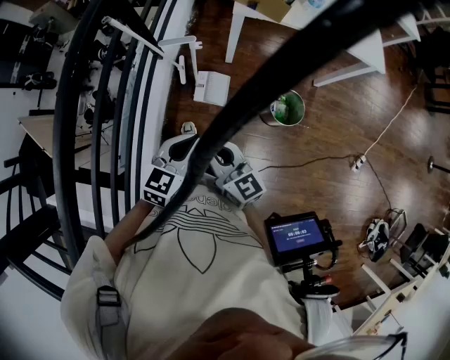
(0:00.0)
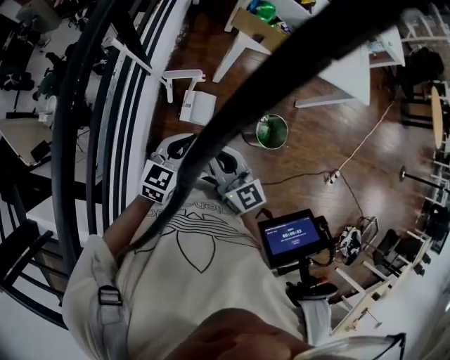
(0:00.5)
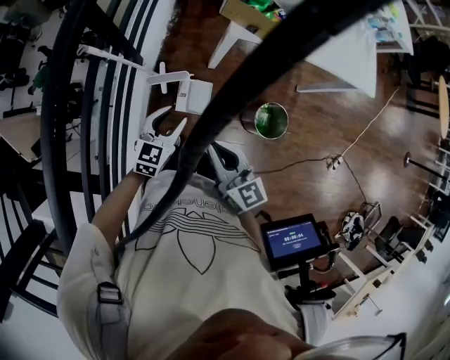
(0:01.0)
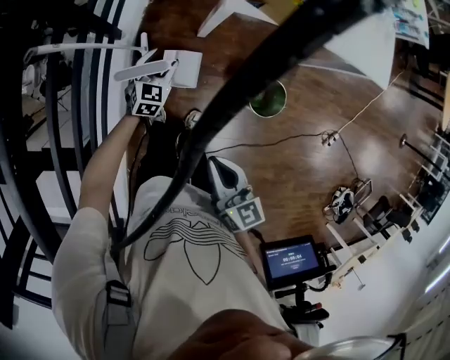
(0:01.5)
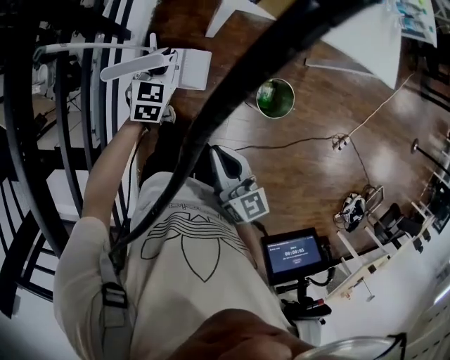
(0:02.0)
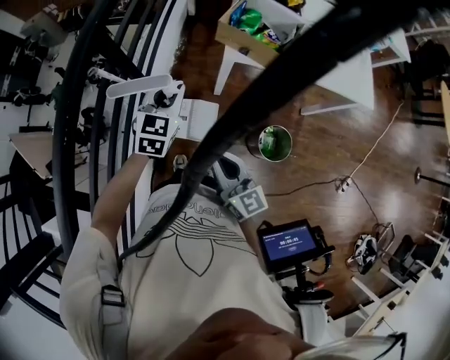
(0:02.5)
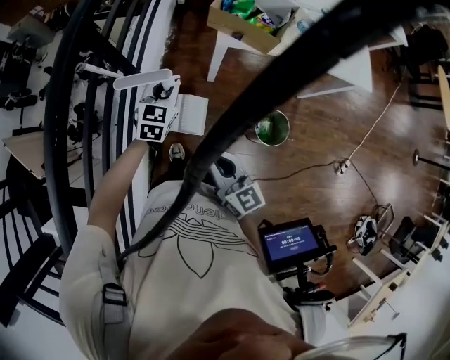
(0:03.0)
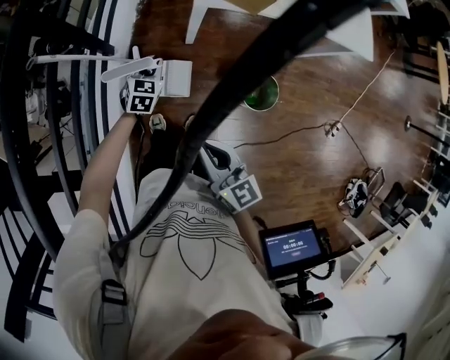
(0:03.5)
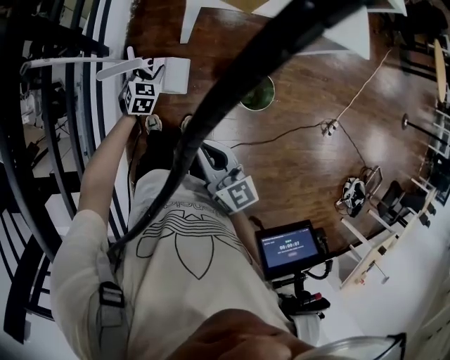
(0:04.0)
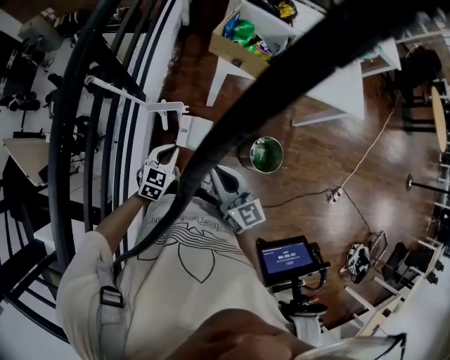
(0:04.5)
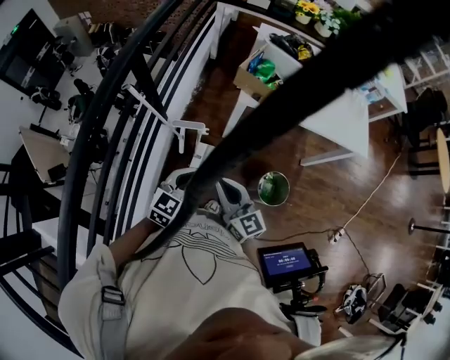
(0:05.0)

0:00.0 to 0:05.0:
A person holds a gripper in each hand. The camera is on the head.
0:00.0 to 0:02.5: The right gripper travels forward by roughly 15 cm, while the left gripper goes roughly 30 cm forward, and opens and closes again.
0:02.5 to 0:05.0: The left gripper is displaced backward by some 15 cm, moves roughly 25 cm downward and comes back, and opens, then closes again.

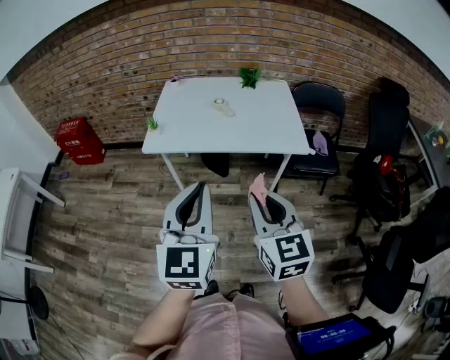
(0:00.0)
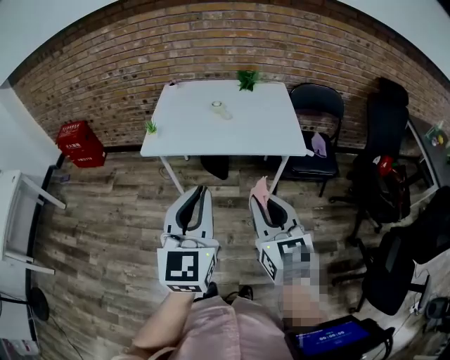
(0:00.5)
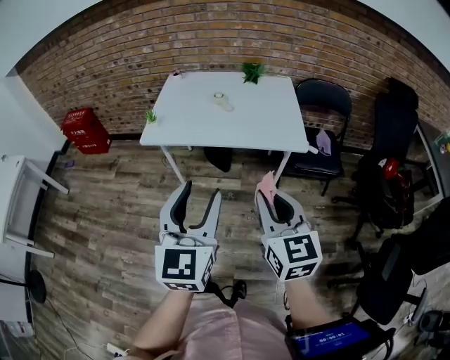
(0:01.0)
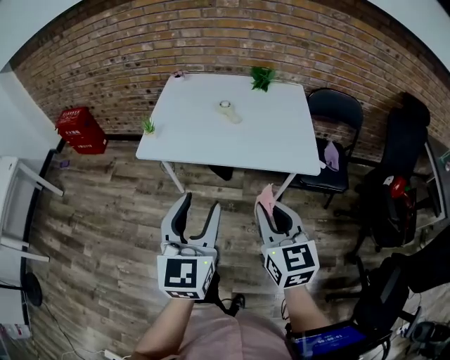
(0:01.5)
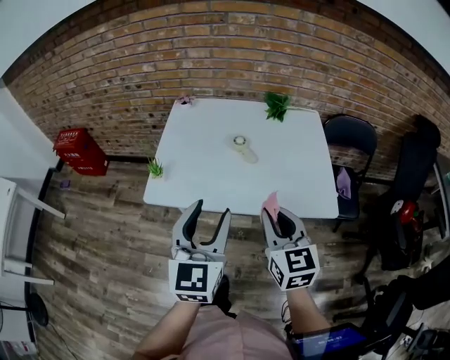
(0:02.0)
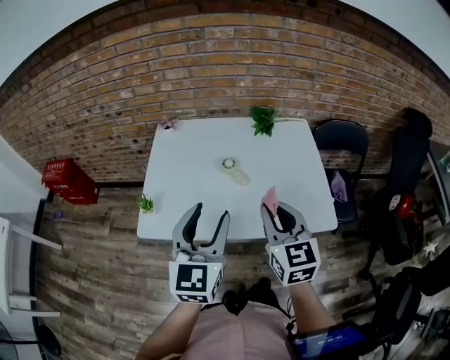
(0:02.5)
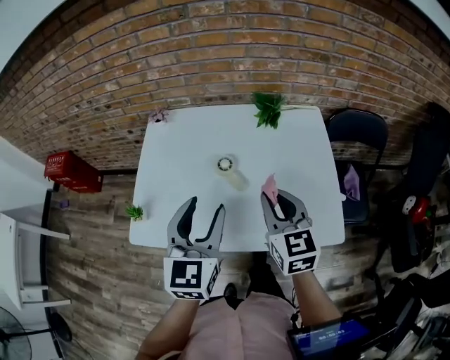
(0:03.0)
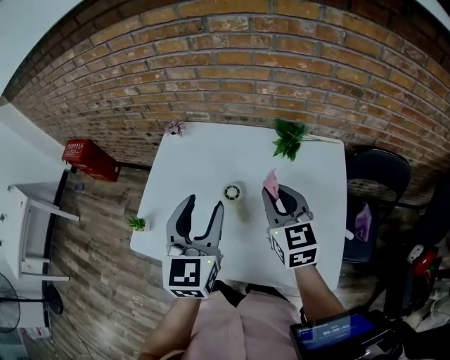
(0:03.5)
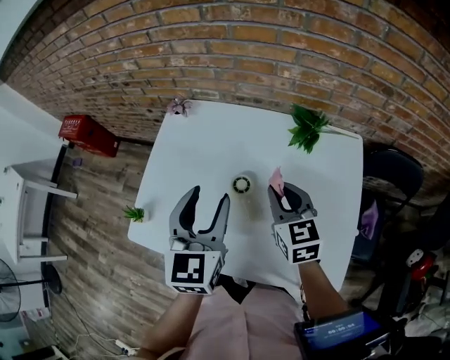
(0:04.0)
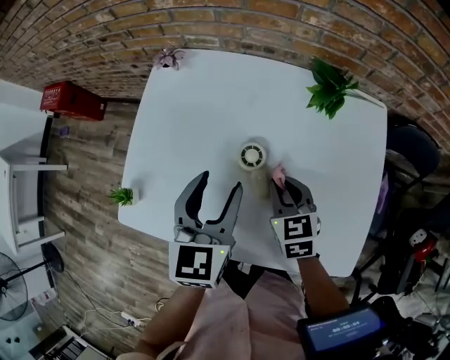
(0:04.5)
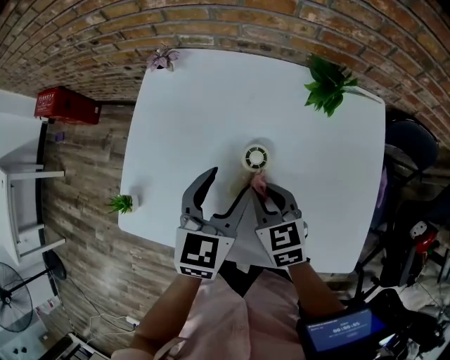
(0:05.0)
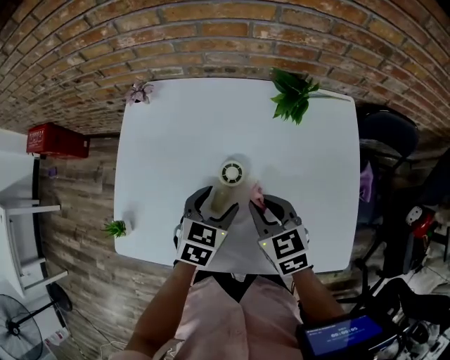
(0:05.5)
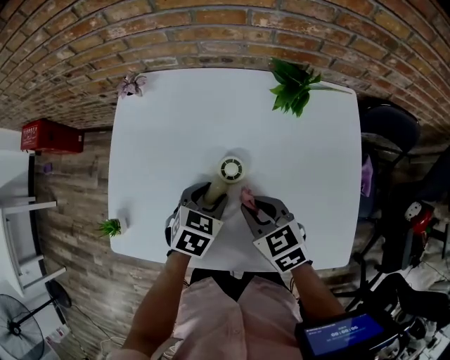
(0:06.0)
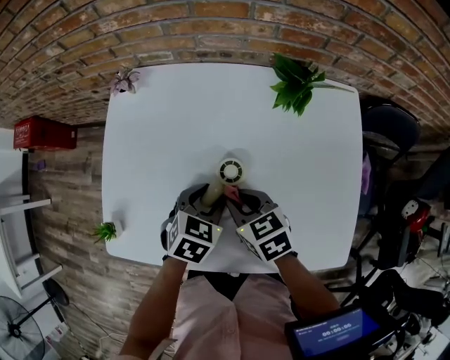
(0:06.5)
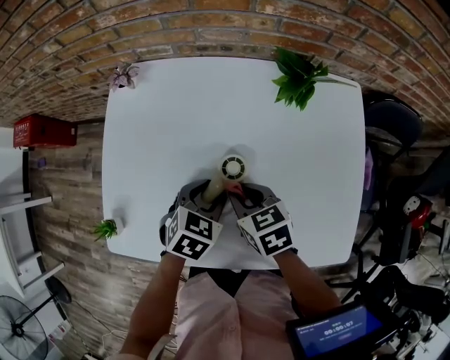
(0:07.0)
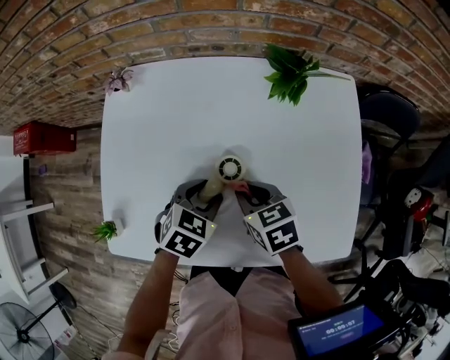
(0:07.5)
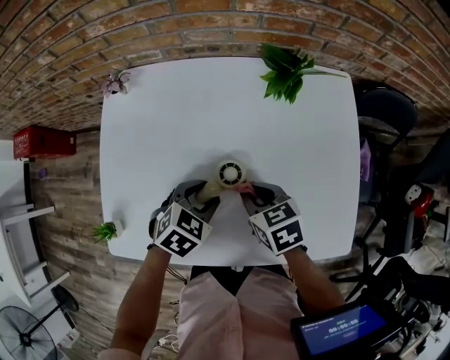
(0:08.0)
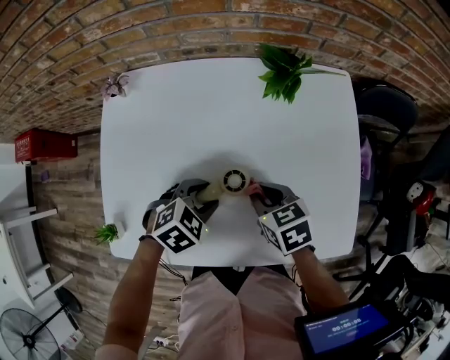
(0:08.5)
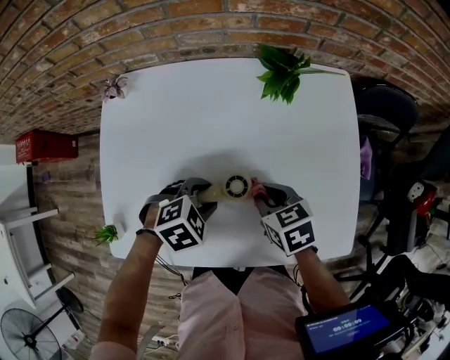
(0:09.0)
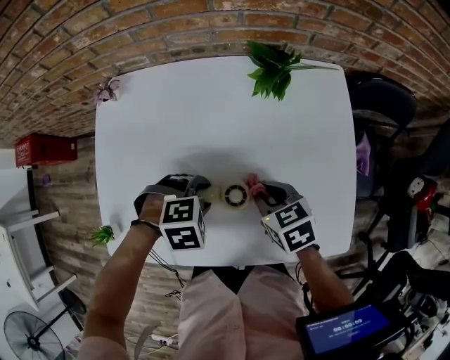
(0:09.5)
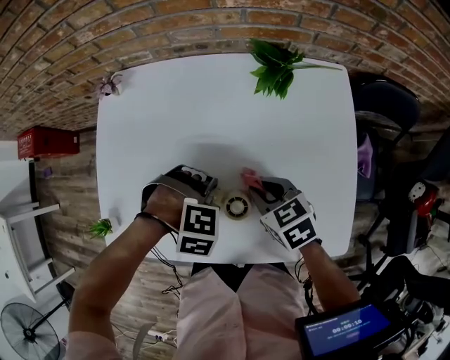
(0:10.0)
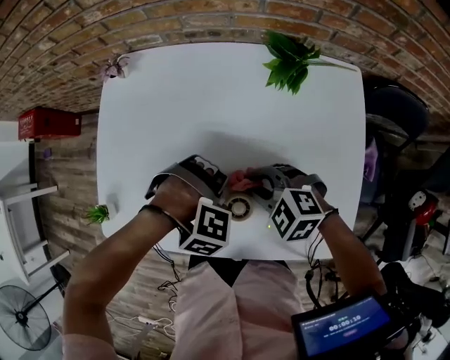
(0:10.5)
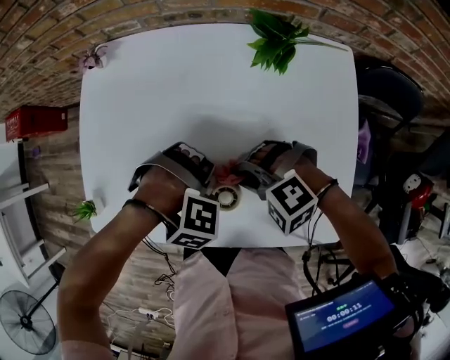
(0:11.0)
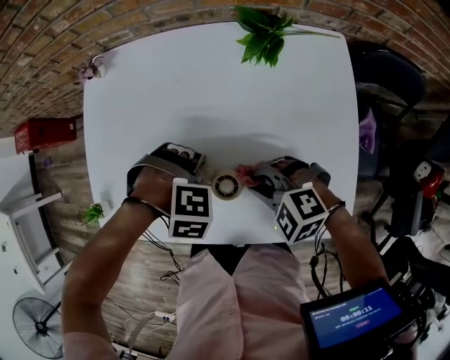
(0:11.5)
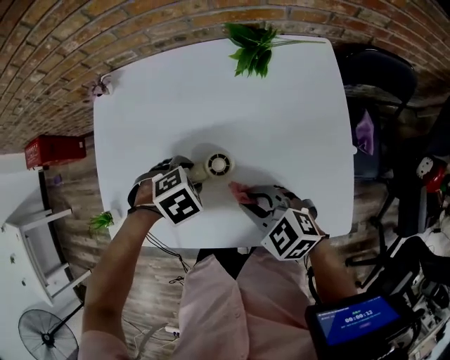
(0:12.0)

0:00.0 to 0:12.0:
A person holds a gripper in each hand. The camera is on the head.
0:00.0 to 0:02.0: Both grippers move forward, roughly 25 cm. The left gripper opens up.
0:02.0 to 0:04.0: Both grippers travel together forward, some 30 cm.
0:04.0 to 0:06.0: The right gripper heads downward, backward and to the left, covering about 15 cm, and changes its angle by approximately 20 degrees. Meanwhile the left gripper heads downward, covering approximately 25 cm, and tips its fingers downward by some 40 degrees.
0:06.0 to 0:08.0: The grippers make only small movements.
0:08.0 to 0:10.0: The left gripper rolls clockwise, seen from behind, by some 60 degrees.
0:10.0 to 0:12.0: The right gripper moves roughly 10 cm, and rotates about 30 degrees. Meanwhile the left gripper rotates approximately 40 degrees.

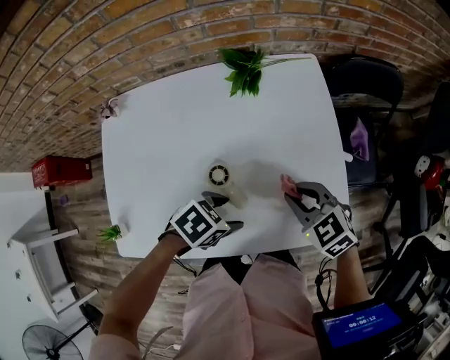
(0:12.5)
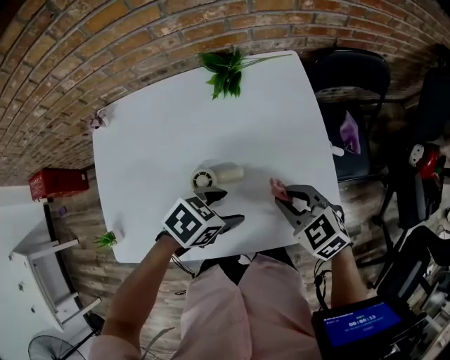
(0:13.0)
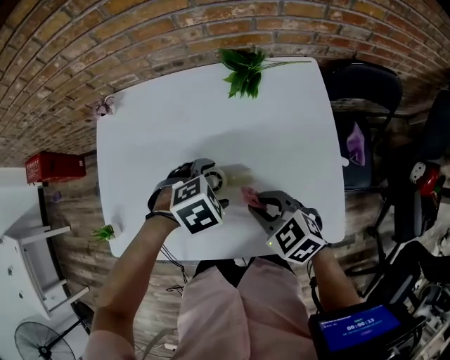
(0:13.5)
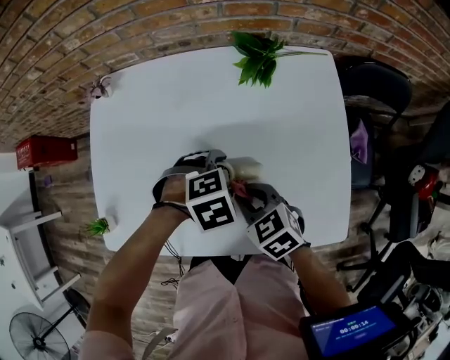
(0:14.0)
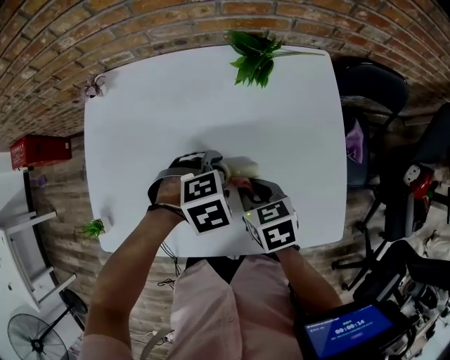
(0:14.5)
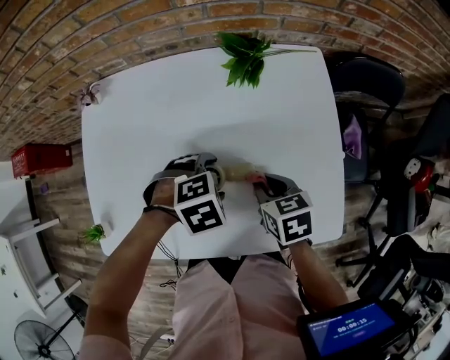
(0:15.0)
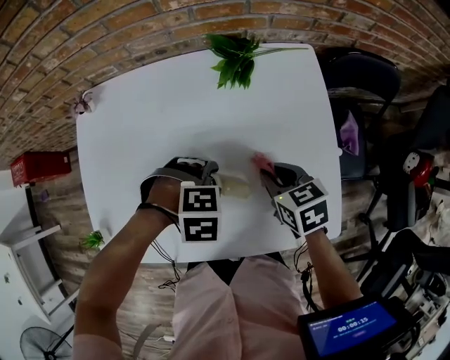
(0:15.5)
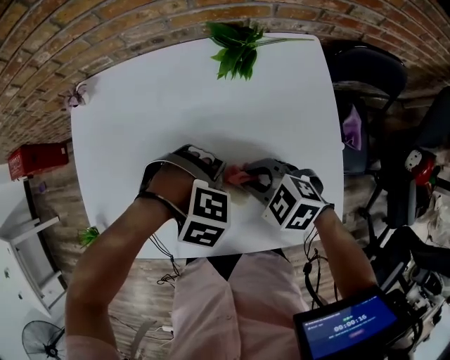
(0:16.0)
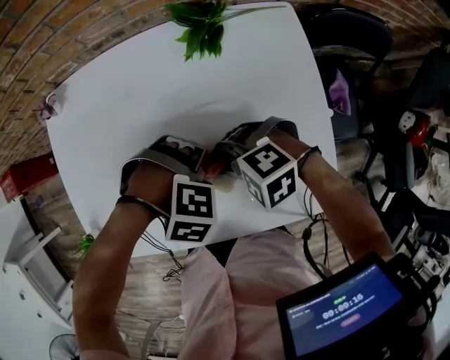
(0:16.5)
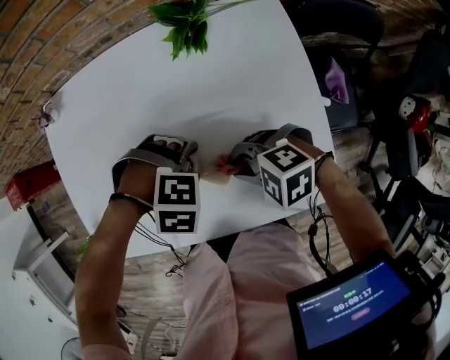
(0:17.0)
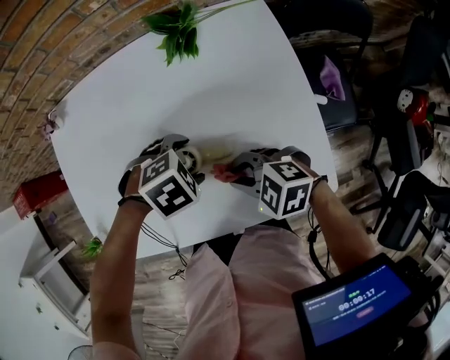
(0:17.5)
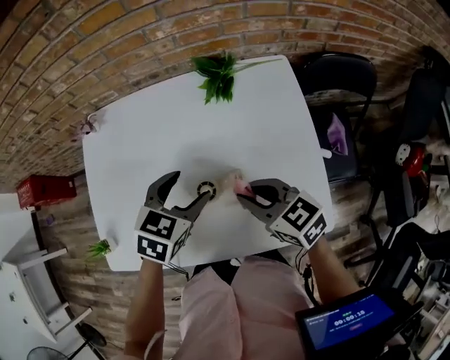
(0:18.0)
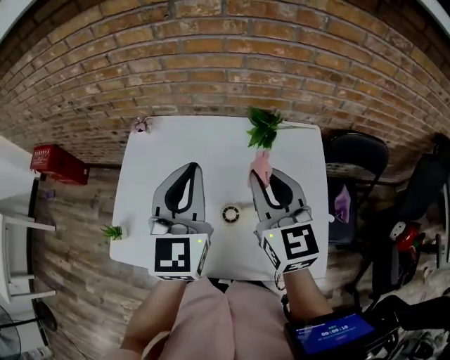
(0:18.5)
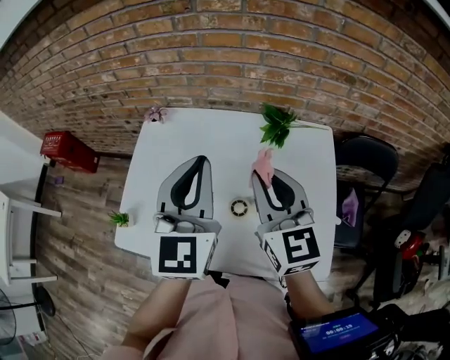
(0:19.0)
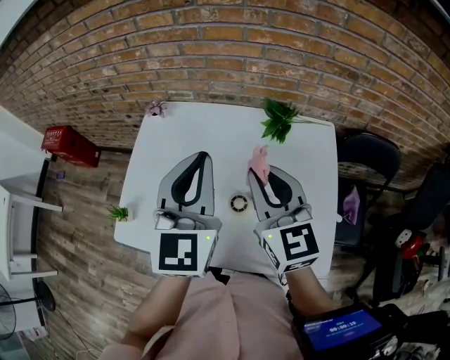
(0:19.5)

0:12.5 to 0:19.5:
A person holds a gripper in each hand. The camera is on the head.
0:12.5 to 0:14.5: The right gripper moves roughly 10 cm, and swivels roughly 30 degrees. Meanwhile the left gripper shifts by roughly 10 cm, and rotates about 30 degrees.
0:14.5 to 0:16.0: The right gripper rolls counterclockwise, seen from behind, by approximately 40 degrees. The left gripper rolls clockwise, seen from behind, by roughly 40 degrees.
0:16.0 to 0:17.5: The right gripper moves some 5 cm; the left gripper rotates roughly 40 degrees.
0:17.5 to 0:19.5: Both grippers move upward, about 30 cm. The left gripper tips its fingers upward by roughly 70 degrees, and closes up; the right gripper angles its fingers upward, by approximately 40 degrees.

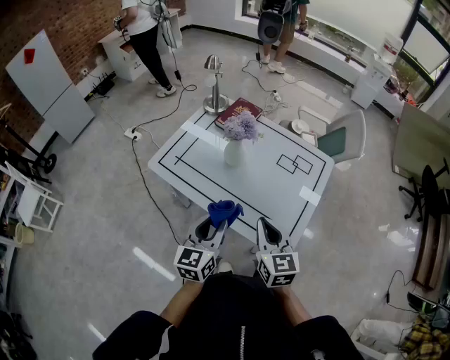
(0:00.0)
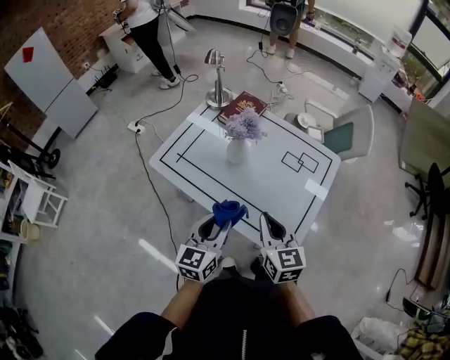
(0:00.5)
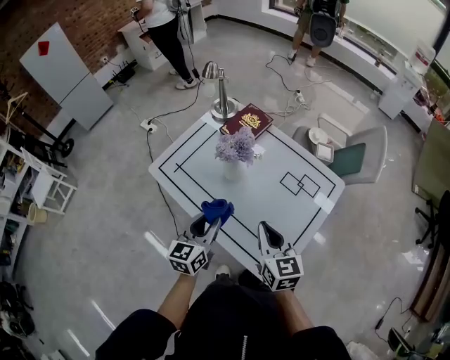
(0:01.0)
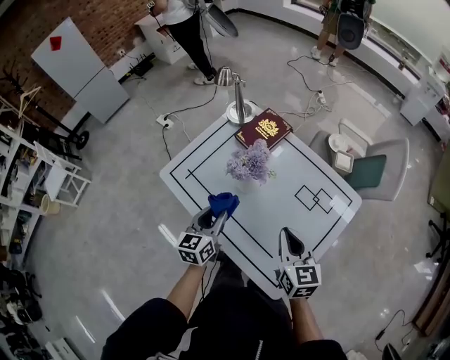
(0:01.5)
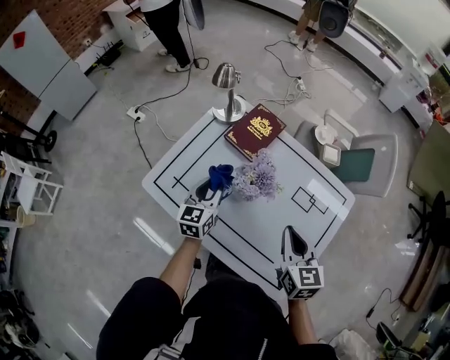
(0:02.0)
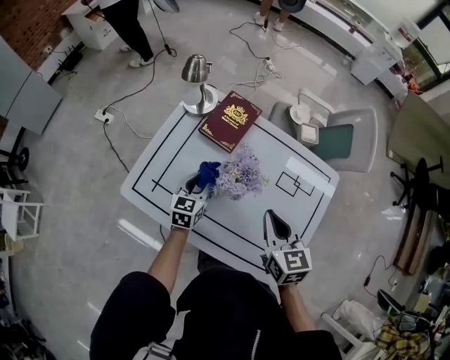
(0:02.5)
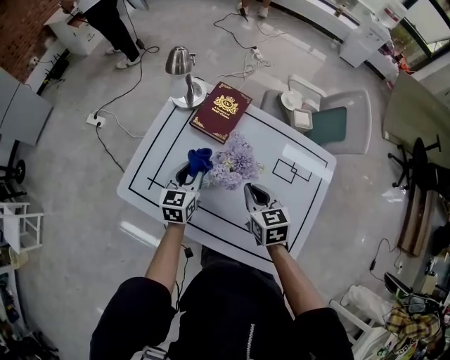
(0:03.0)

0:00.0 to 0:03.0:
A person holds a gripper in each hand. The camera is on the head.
0:00.0 to 0:01.5: The right gripper heads forward and to the right, covering approximately 20 cm; the left gripper travels forward by roughly 20 cm.
0:01.5 to 0:03.0: The right gripper heads forward, to the left and downward, covering approximately 20 cm. The left gripper moves forward and downward, approximately 20 cm.
